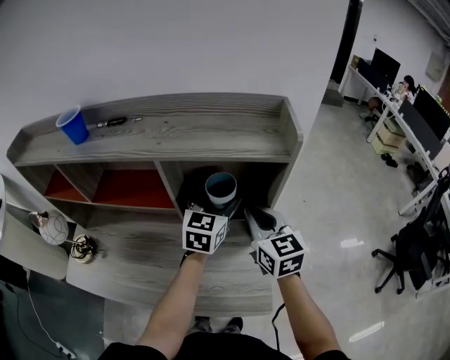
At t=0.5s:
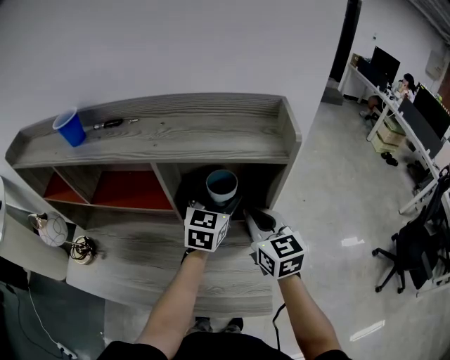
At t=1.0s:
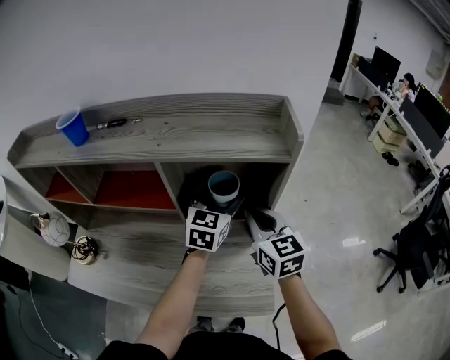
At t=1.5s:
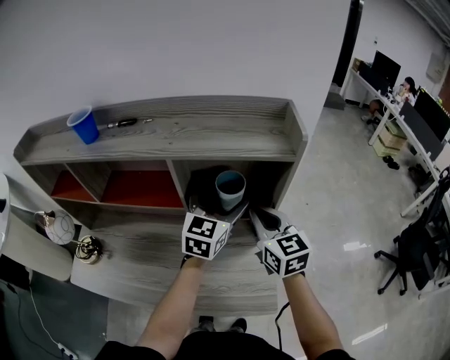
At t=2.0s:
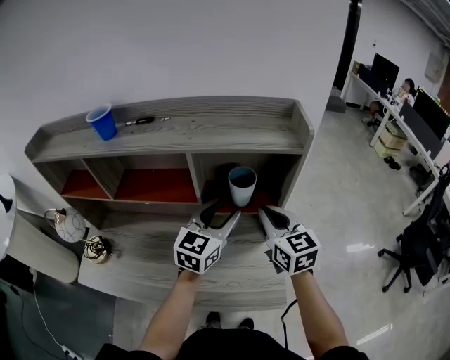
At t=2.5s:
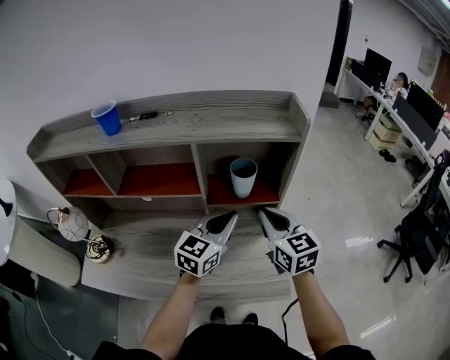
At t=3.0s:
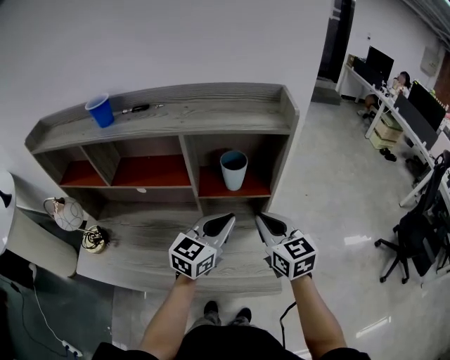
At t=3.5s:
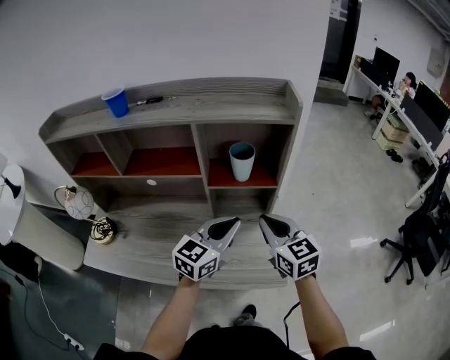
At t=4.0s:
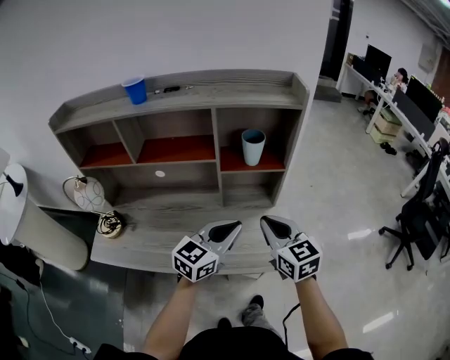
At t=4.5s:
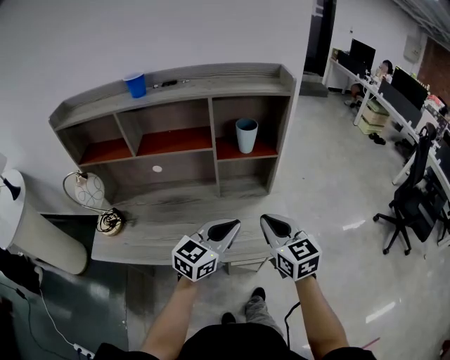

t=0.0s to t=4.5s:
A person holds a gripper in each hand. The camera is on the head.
t=0.0s to t=2.0s: The left gripper heads backward, covering some 10 cm, and closes its fingers.
t=2.0s to t=4.5s: The grippers both shift backward by about 25 cm. The left gripper closes up.

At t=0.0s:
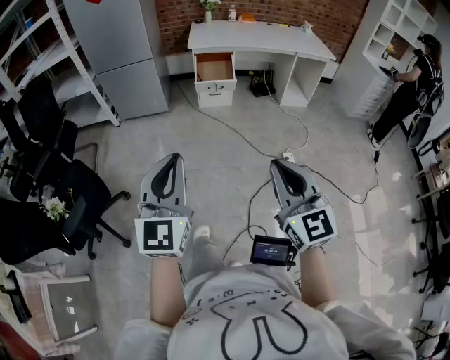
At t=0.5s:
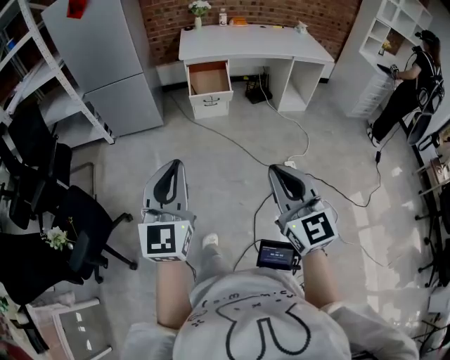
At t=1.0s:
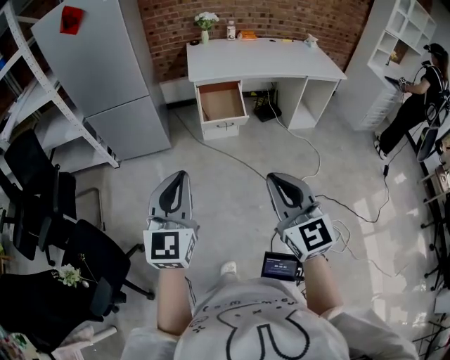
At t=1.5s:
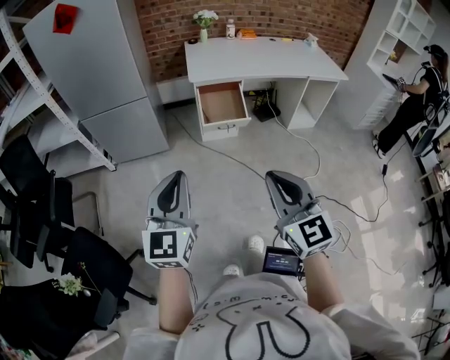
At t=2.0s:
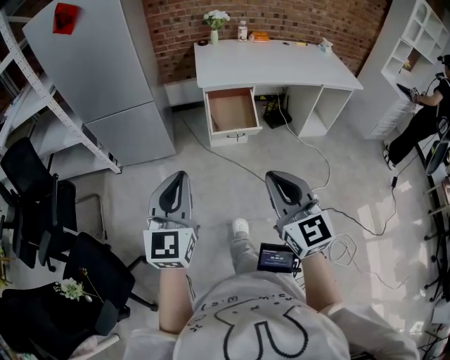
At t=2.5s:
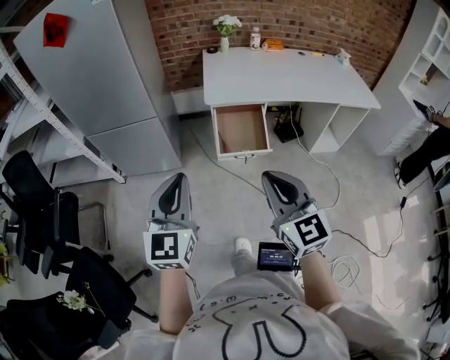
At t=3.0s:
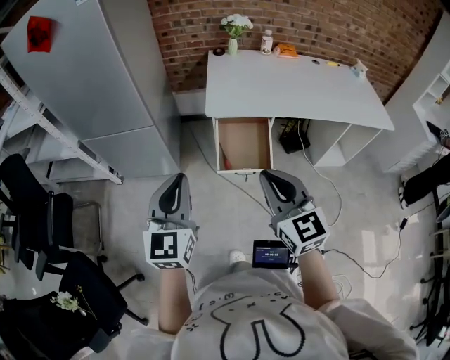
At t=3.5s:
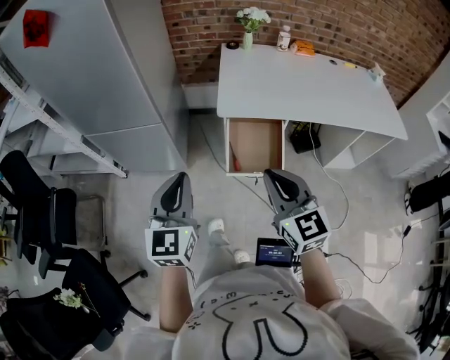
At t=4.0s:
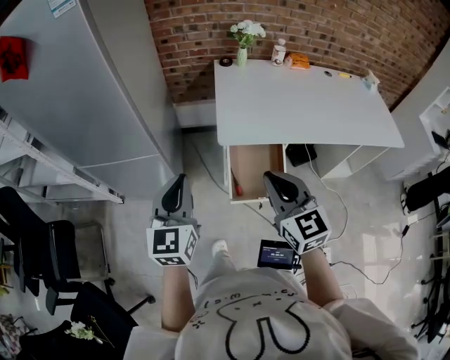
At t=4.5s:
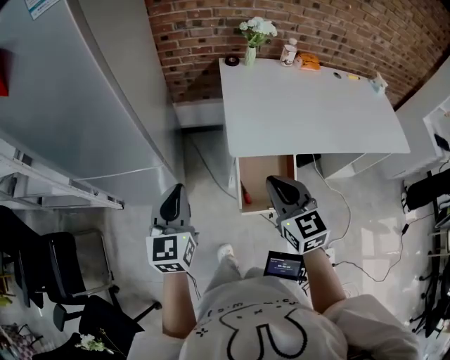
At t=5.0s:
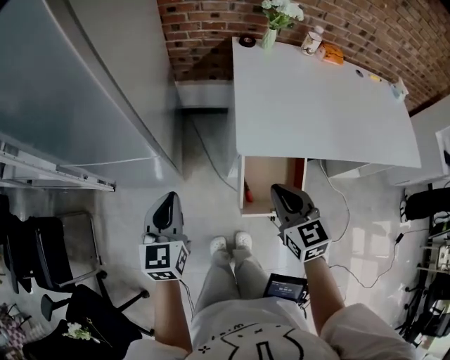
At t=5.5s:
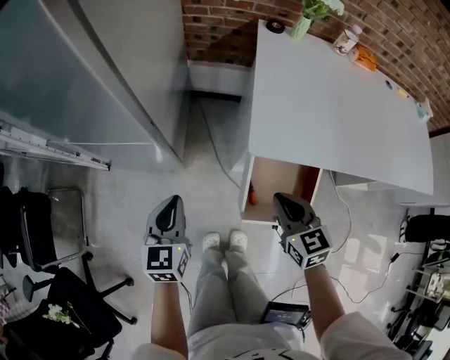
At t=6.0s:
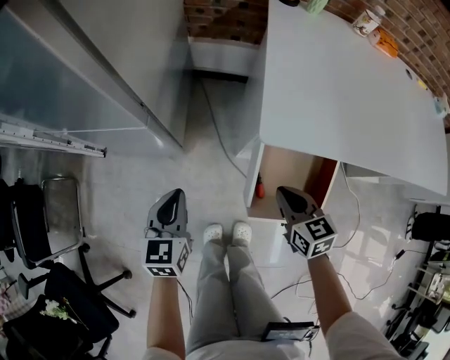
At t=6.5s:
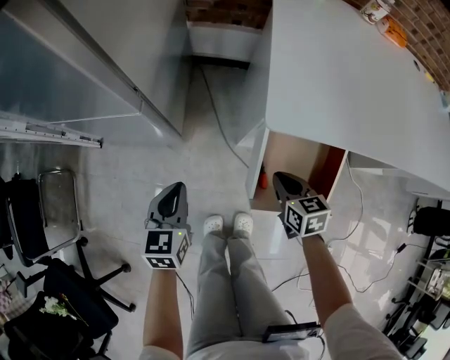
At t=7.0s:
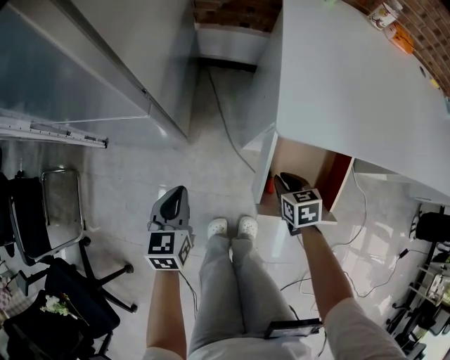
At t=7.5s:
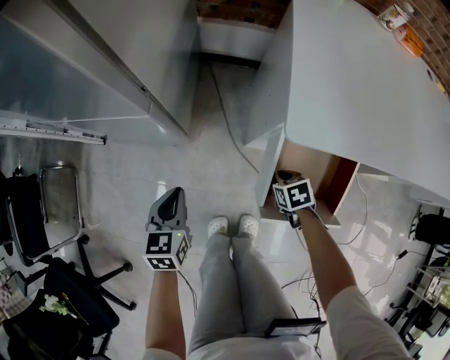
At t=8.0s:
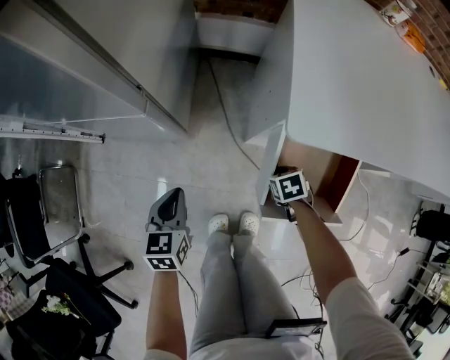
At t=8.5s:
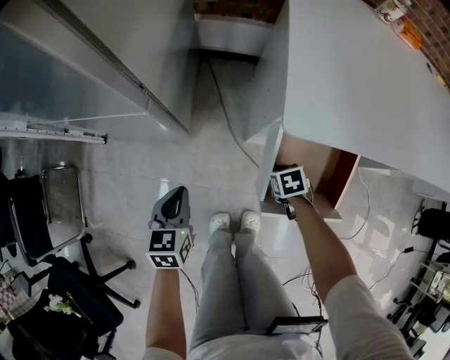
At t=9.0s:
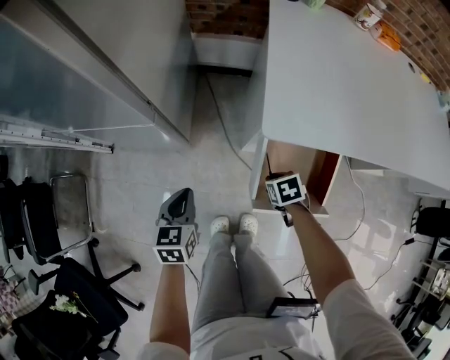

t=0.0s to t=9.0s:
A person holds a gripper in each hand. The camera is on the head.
t=0.0s to t=2.0s: The two grippers travel together, forward, roughly 40 cm.
t=2.0s to t=4.5s: Both grippers are carried forward, roughly 50 cm.
t=4.5s to t=7.0s: The grippers both shift downward by approximately 40 cm. The left gripper swivels approximately 30 degrees. Meanwhile the right gripper points its fingers approximately 40 degrees further downward.
t=7.0s to t=9.0s: The right gripper moves roughly 10 cm downward and comes back.

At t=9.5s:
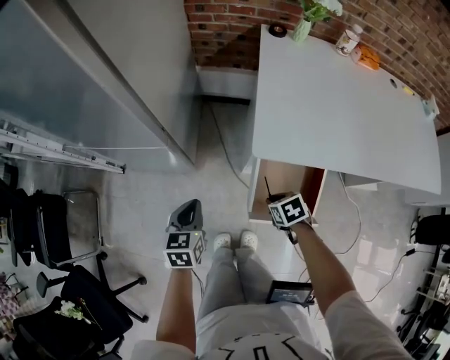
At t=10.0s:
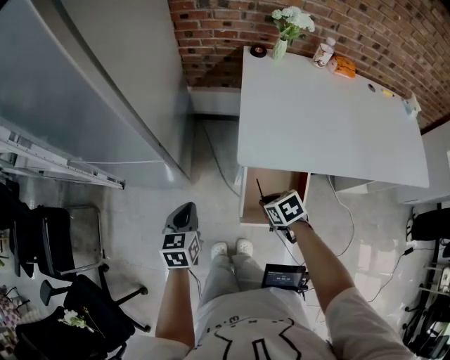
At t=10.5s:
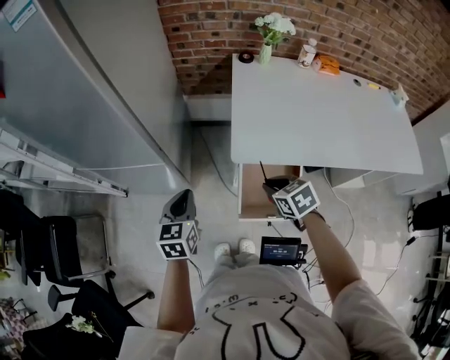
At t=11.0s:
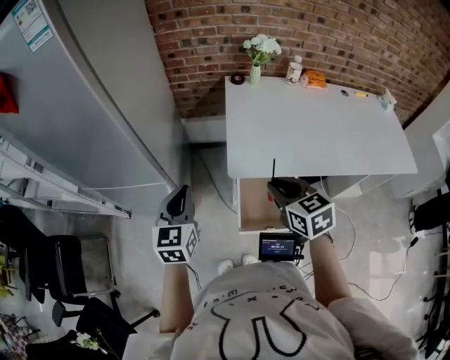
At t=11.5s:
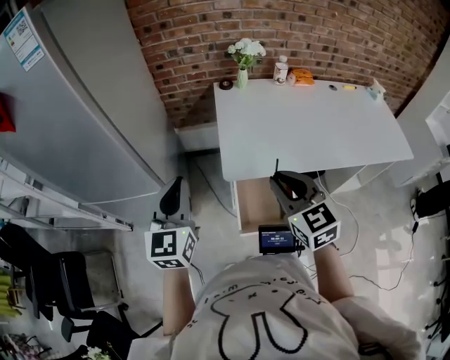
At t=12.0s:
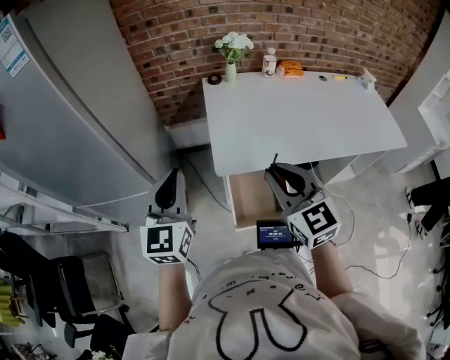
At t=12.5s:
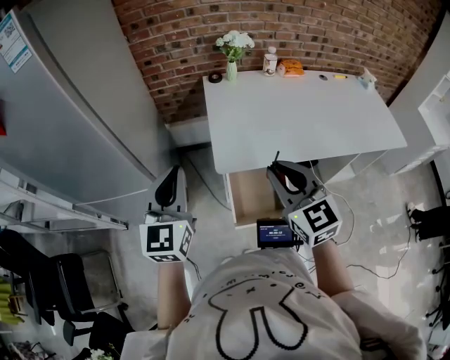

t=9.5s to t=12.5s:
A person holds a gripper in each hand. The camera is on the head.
t=9.5s to t=11.0s: The two grippers go some 30 cm upward. The left gripper swivels some 30 degrees, while the right gripper angles its fingers upward, by some 40 degrees.
t=11.0s to t=12.5s: Both grippers move upward, about 10 cm. The right gripper rotates some 30 degrees.

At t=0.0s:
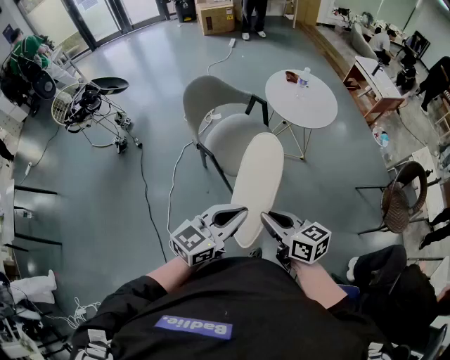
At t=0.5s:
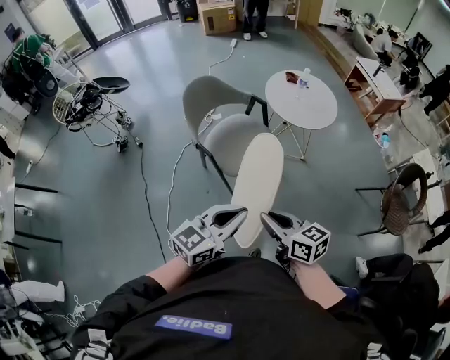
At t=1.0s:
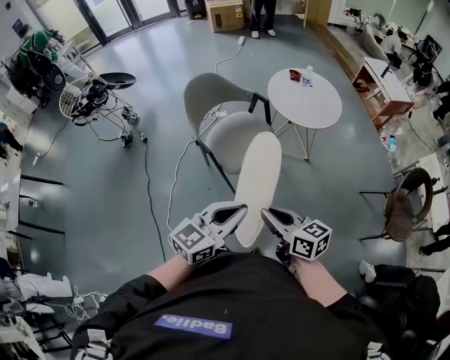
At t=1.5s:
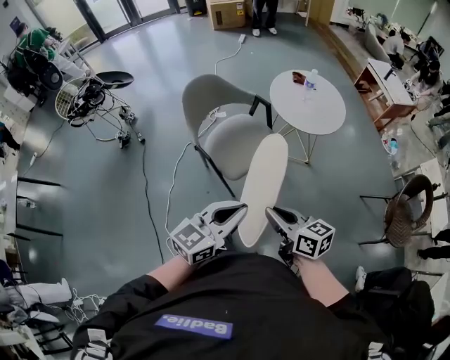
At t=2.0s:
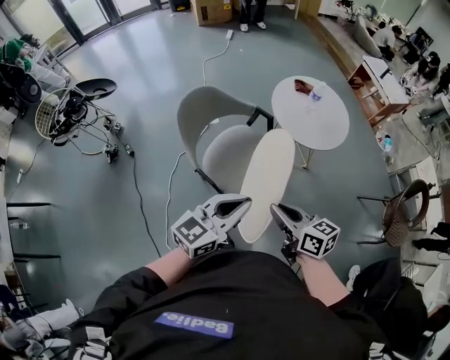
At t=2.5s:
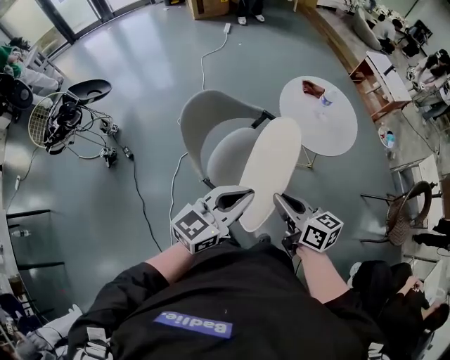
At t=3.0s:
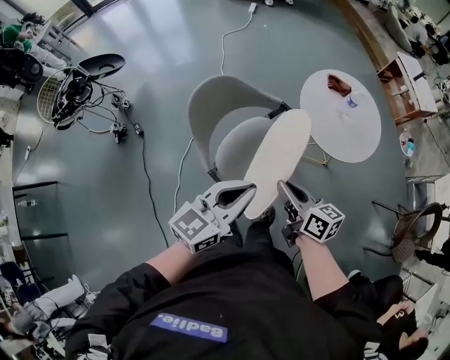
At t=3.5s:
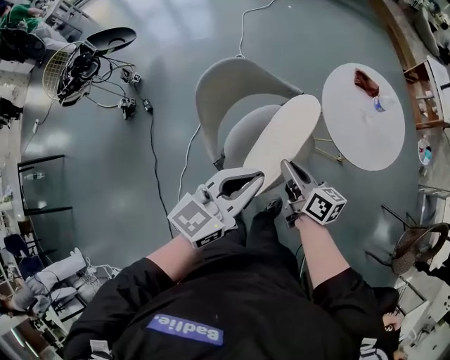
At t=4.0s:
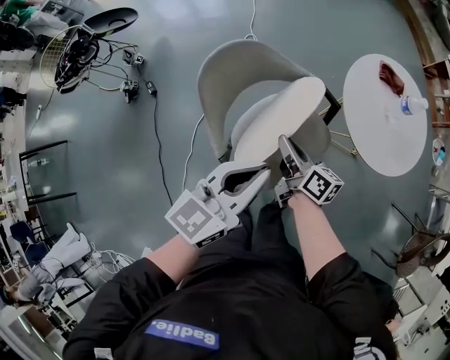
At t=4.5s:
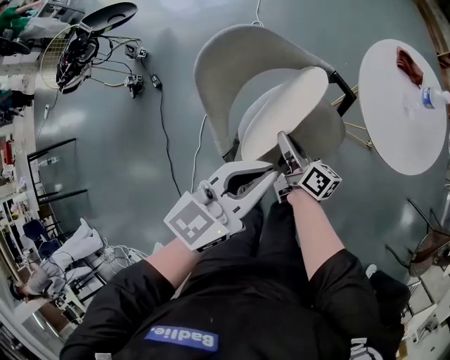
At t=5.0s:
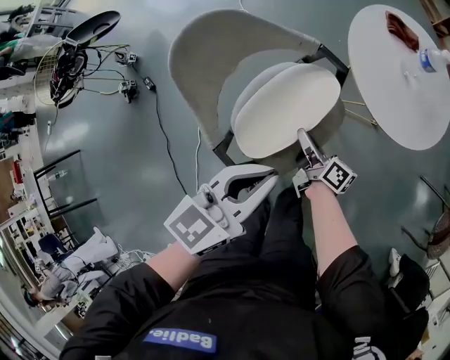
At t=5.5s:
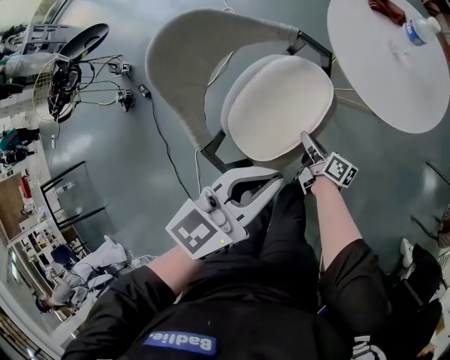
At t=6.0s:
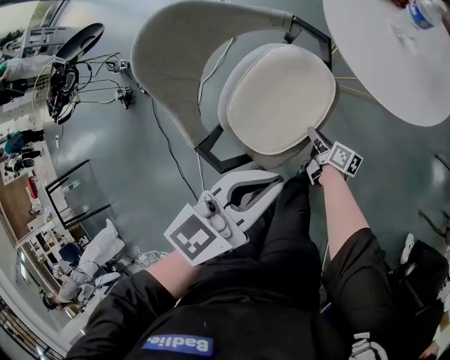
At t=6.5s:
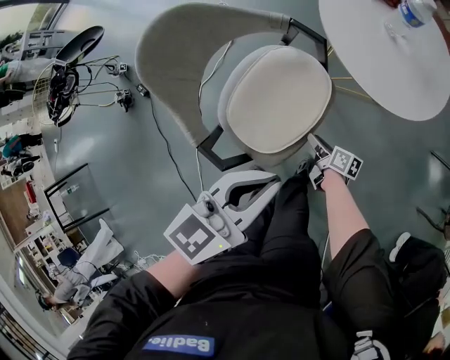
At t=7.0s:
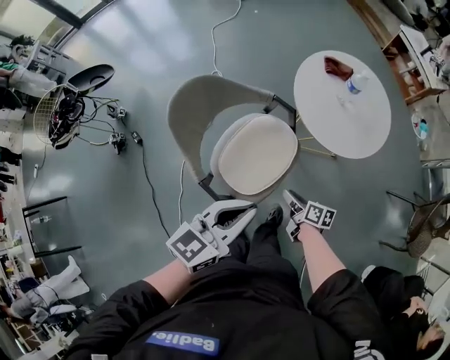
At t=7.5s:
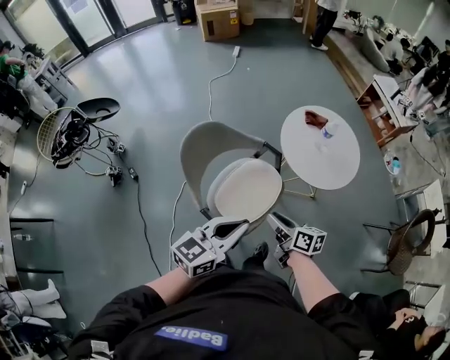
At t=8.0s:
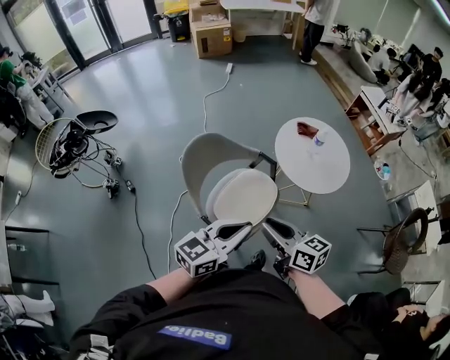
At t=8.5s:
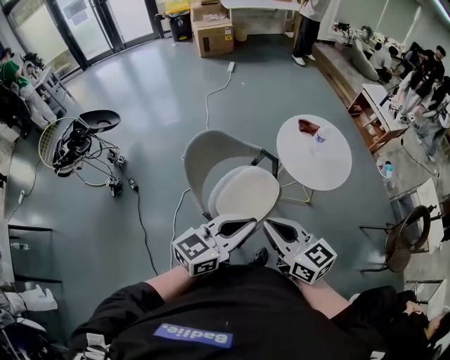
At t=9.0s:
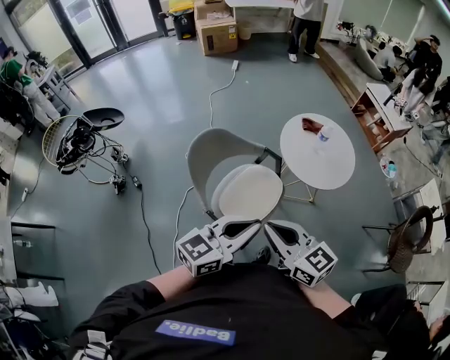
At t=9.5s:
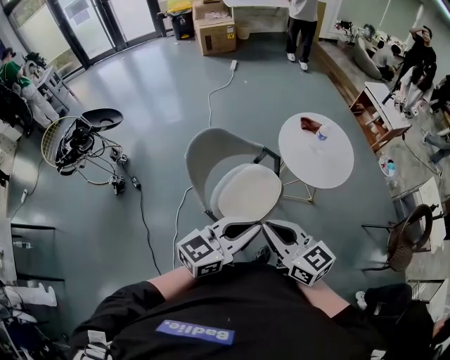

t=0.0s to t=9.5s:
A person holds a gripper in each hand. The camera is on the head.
t=0.0s to t=2.0s: Both grippers move forward, some 20 cm.
t=2.0s to t=4.0s: The left gripper shifts some 20 cm forward. The right gripper shifts approximately 35 cm forward, downward and to the left, and rotates roughly 20 degrees.
t=4.0s to t=5.5s: The right gripper goes about 25 cm downward and to the right. Meanwhile the left gripper heads to the right and downward, covering approximately 15 cm.
t=5.5s to t=7.5s: The left gripper shifts roughly 15 cm upward and backward. Meanwhile the right gripper shifts about 30 cm upward, and swivels about 20 degrees.
t=7.5s to t=9.5s: The right gripper heads upward and backward, covering approximately 20 cm, turns by roughly 40 degrees, and closes. Meanwhile the left gripper heads upward, covering approximately 5 cm.
